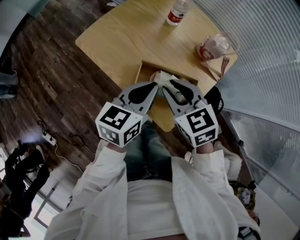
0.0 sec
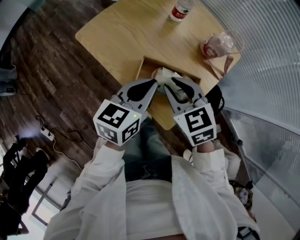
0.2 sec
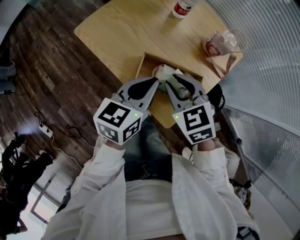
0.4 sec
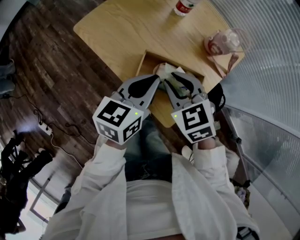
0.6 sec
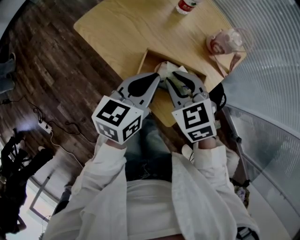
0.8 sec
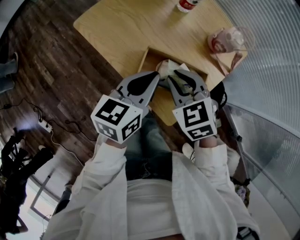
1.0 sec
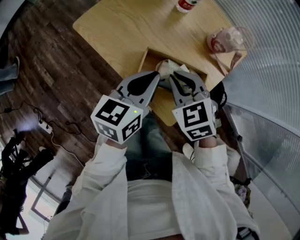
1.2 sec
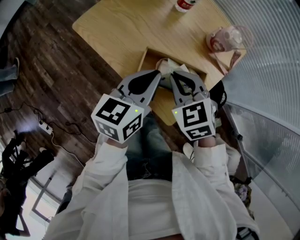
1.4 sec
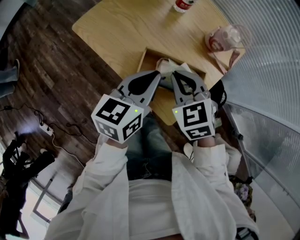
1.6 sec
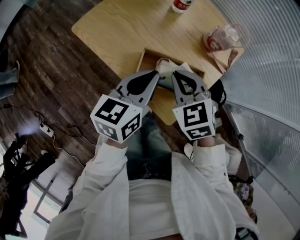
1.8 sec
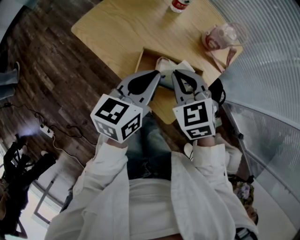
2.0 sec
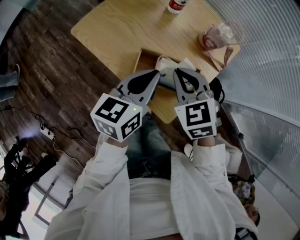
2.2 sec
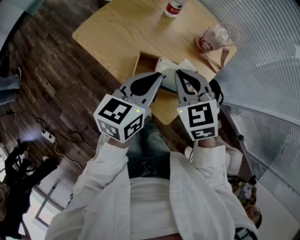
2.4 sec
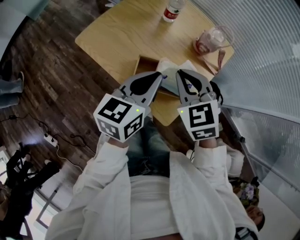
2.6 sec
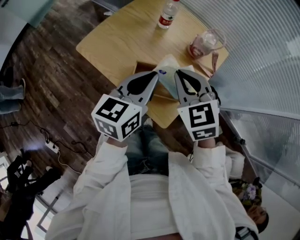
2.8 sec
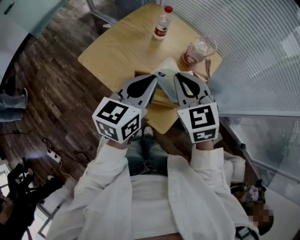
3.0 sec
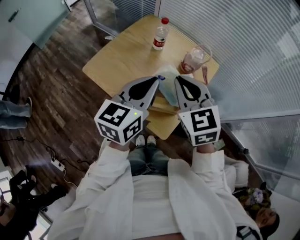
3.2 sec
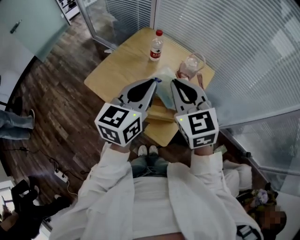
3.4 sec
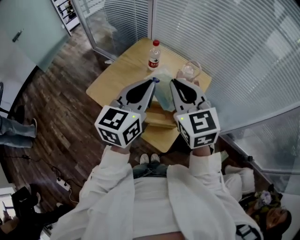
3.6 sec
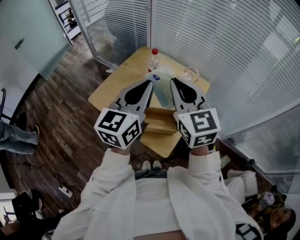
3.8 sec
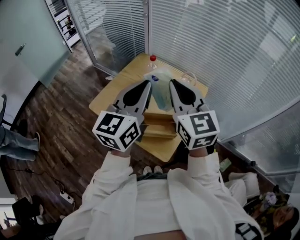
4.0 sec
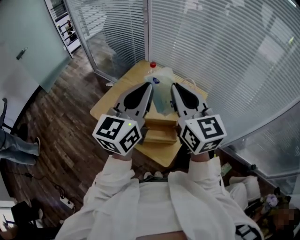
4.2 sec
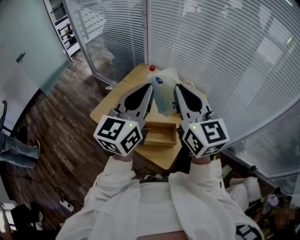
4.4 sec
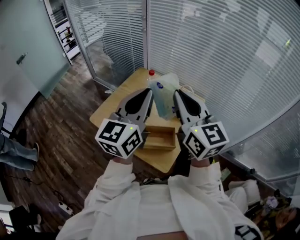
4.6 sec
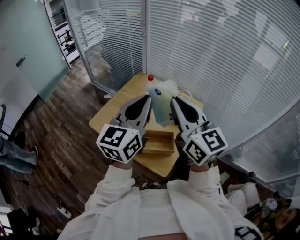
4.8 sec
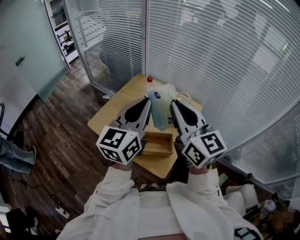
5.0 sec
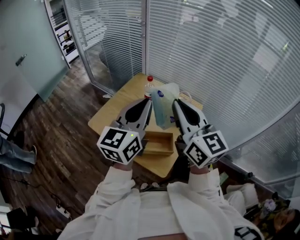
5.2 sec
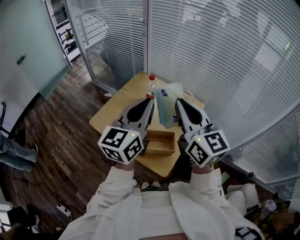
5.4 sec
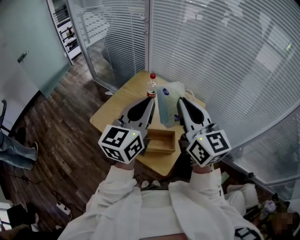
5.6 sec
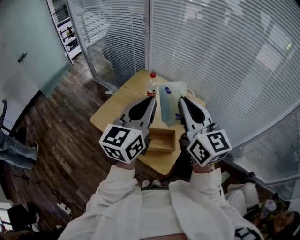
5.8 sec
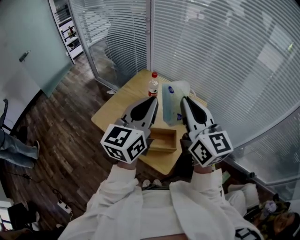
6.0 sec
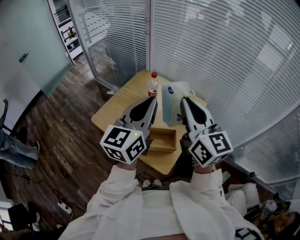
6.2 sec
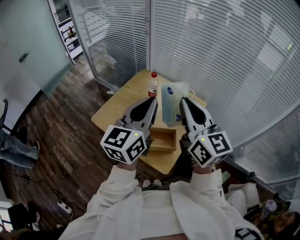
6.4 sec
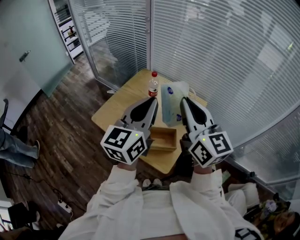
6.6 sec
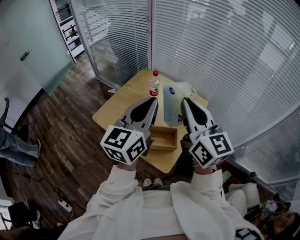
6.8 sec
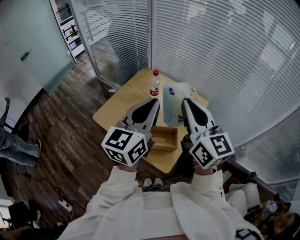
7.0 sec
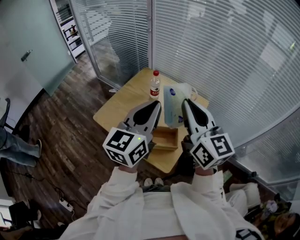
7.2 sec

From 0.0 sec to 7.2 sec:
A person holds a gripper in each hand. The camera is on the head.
From 0.0 sec to 1.4 sec: The grippers stay close to where they were, moving slightly.
From 1.4 sec to 2.8 sec: The two grippers go some 10 cm upward.
From 2.8 sec to 4.4 sec: The two grippers go approximately 20 cm upward. The left gripper swivels about 30 degrees, while the right gripper angles its fingers upward, by some 40 degrees.
From 4.4 sec to 7.2 sec: The grippers stay close to where they were, moving slightly.

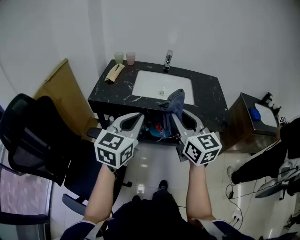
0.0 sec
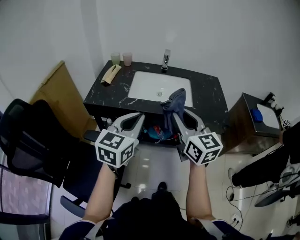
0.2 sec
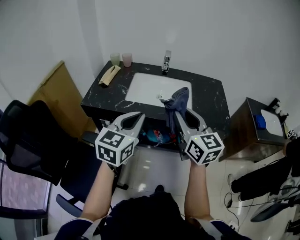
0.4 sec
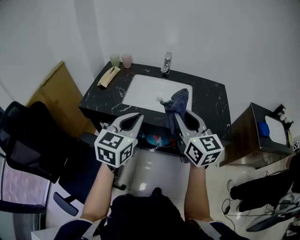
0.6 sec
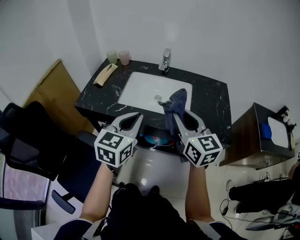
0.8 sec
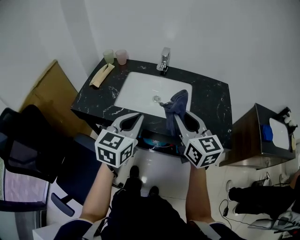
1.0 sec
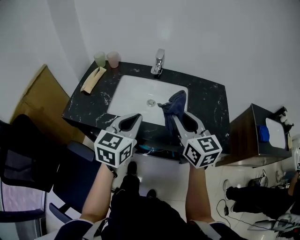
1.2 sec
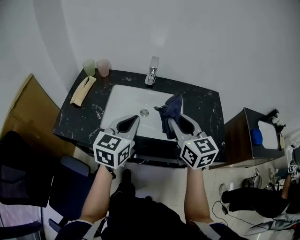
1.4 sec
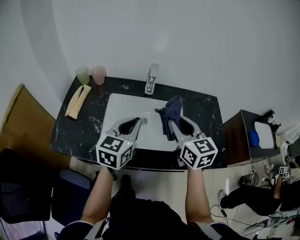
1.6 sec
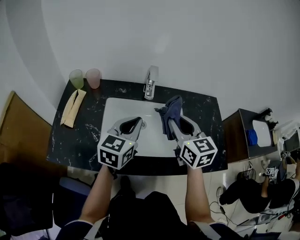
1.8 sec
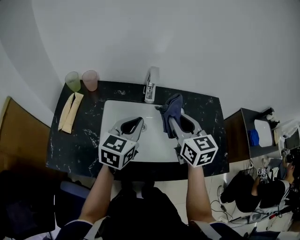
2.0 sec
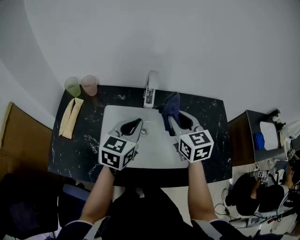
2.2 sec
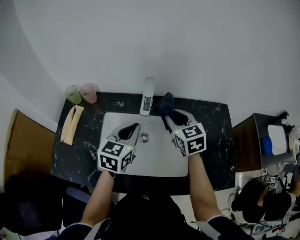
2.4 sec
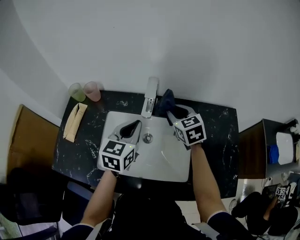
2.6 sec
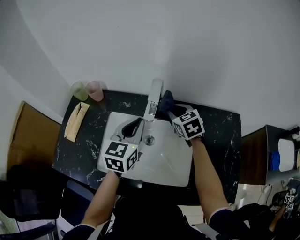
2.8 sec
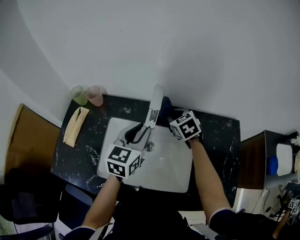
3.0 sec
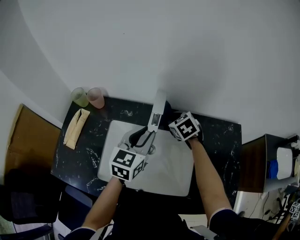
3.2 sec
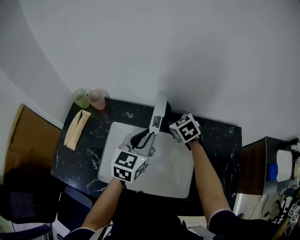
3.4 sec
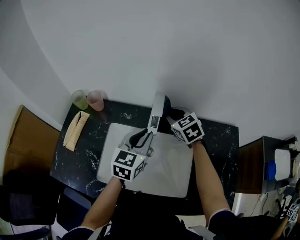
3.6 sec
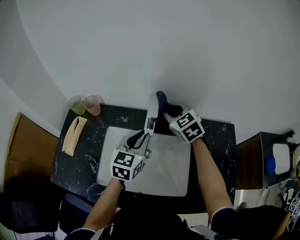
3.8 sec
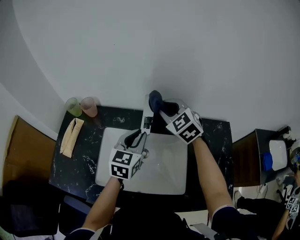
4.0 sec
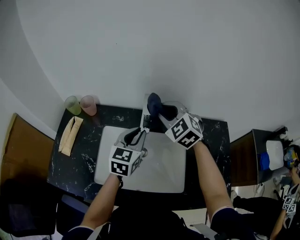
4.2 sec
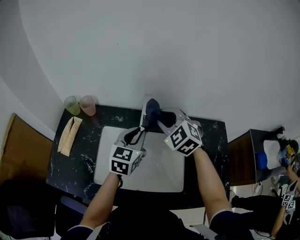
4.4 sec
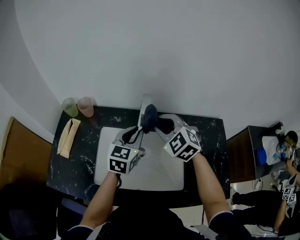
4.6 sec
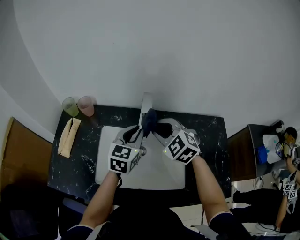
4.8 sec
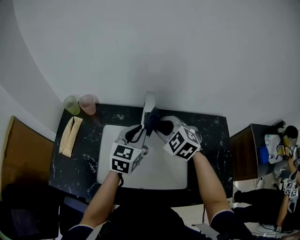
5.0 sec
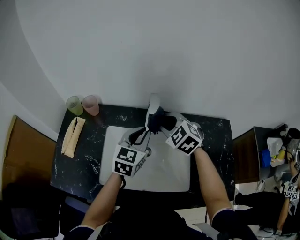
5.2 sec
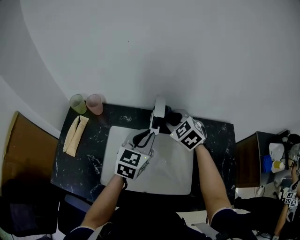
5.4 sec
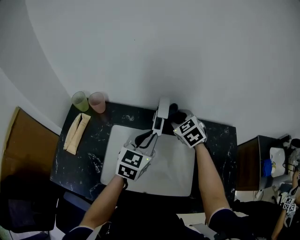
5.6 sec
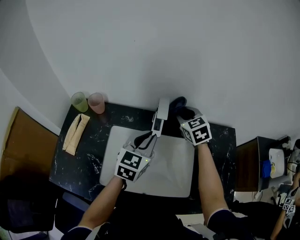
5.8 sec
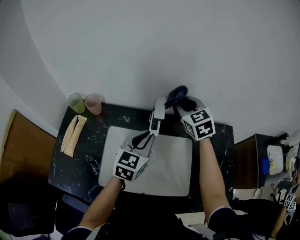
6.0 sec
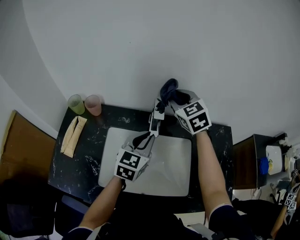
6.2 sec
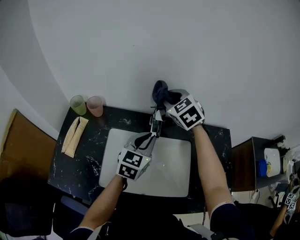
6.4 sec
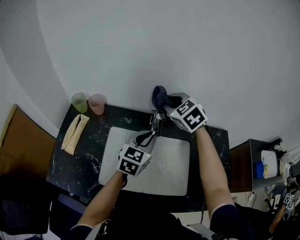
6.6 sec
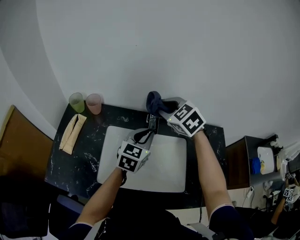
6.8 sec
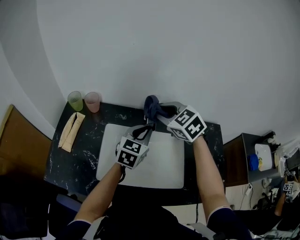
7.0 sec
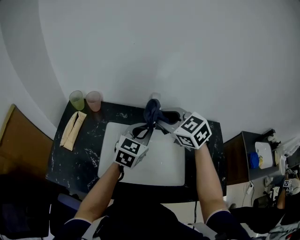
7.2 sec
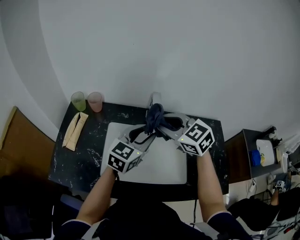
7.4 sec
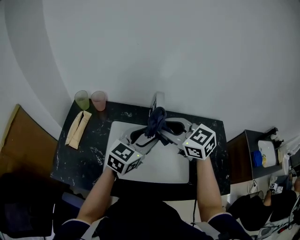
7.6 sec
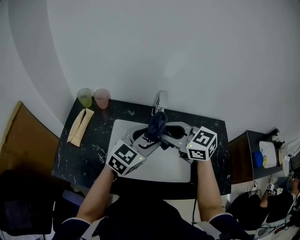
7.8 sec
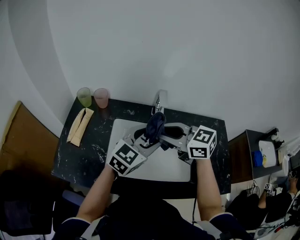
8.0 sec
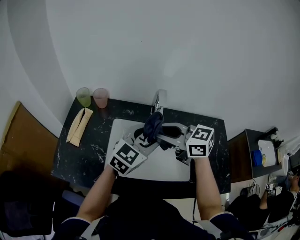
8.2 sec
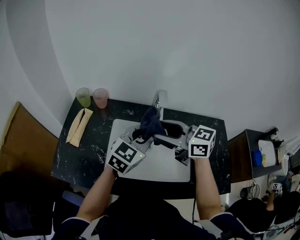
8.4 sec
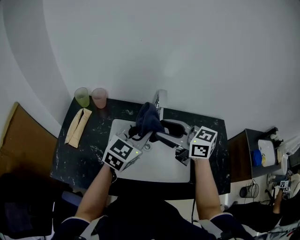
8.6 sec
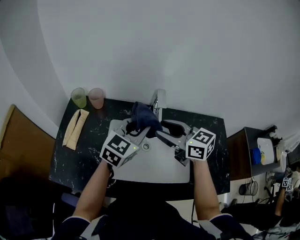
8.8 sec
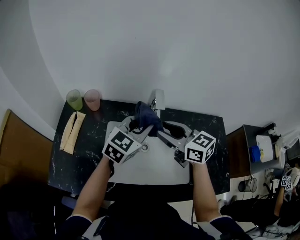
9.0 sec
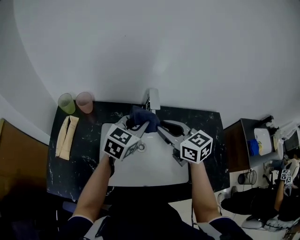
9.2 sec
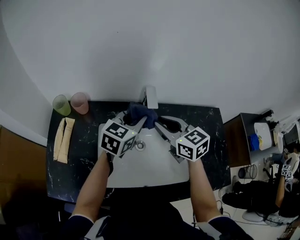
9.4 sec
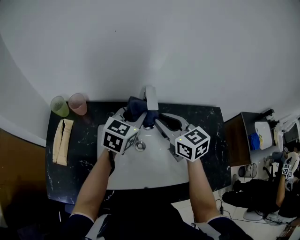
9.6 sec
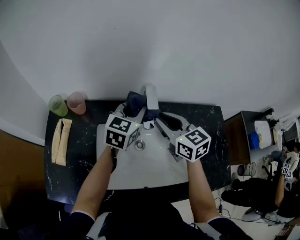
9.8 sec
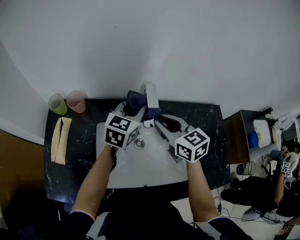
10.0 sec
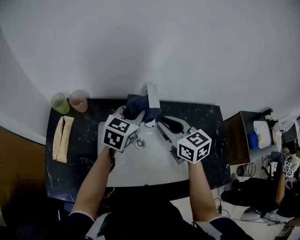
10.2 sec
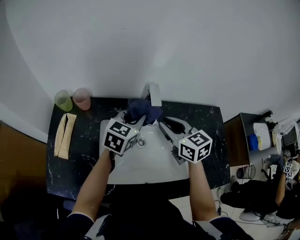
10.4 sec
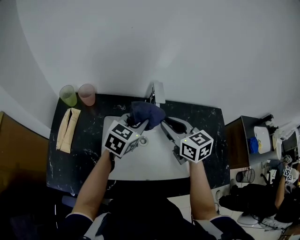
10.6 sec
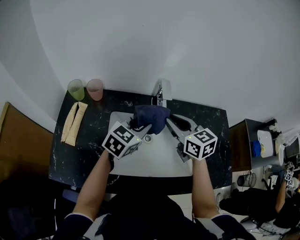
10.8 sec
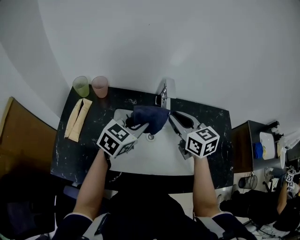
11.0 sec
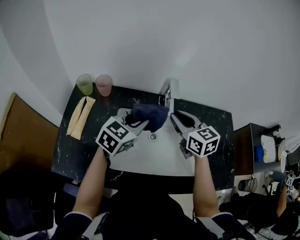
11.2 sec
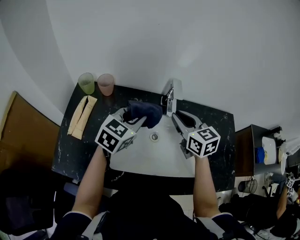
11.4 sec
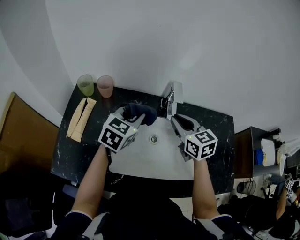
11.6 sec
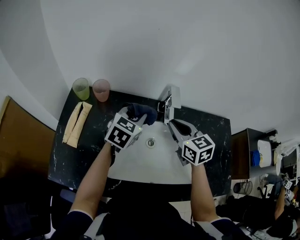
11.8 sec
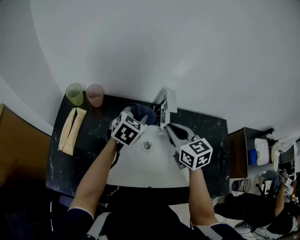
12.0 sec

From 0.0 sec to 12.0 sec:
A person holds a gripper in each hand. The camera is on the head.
From 0.0 sec to 1.6 sec: The two grippers go about 35 cm forward.
From 1.6 sec to 3.0 sec: The left gripper travels forward by about 15 cm, and opens. The right gripper travels forward and downward by roughly 30 cm, and angles its fingers downward, by about 30 degrees.
From 3.0 sec to 4.4 sec: The right gripper moves upward, about 10 cm, and changes its angle by some 30 degrees.
From 4.4 sec to 6.0 sec: The right gripper is displaced forward by roughly 10 cm, and rotates roughly 30 degrees.
From 6.0 sec to 7.6 sec: The left gripper travels backward and upward by about 10 cm, and opens. The right gripper is displaced backward and to the left by about 20 cm, and rotates about 30 degrees.
From 7.6 sec to 9.0 sec: The left gripper is displaced forward by about 5 cm, and closes up.
From 9.0 sec to 10.4 sec: The right gripper moves approximately 5 cm. Meanwhile the left gripper shifts approximately 5 cm downward.
From 10.4 sec to 12.0 sec: The left gripper travels backward and back again, roughly 10 cm each way.

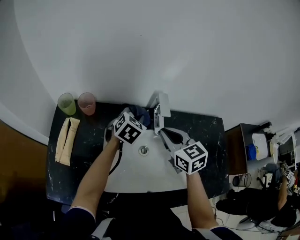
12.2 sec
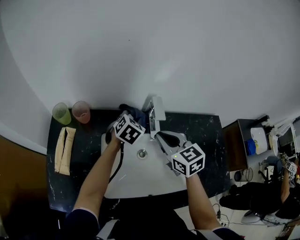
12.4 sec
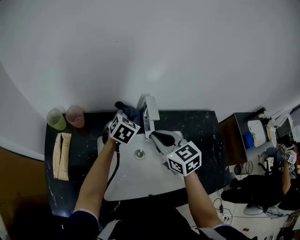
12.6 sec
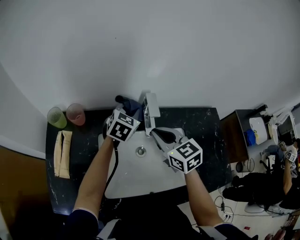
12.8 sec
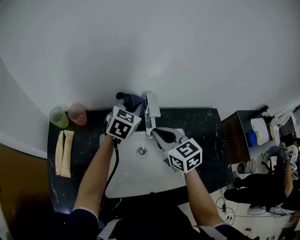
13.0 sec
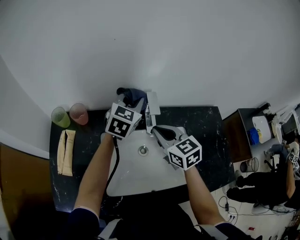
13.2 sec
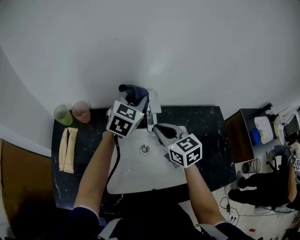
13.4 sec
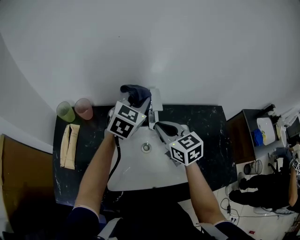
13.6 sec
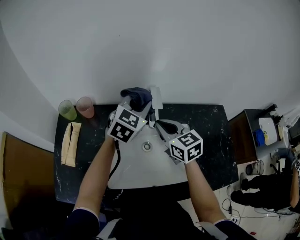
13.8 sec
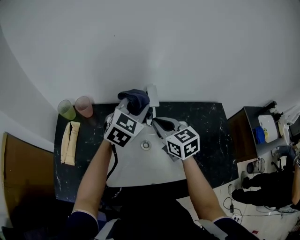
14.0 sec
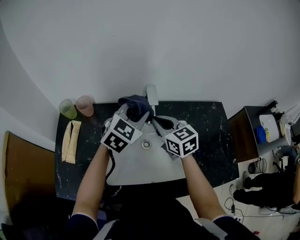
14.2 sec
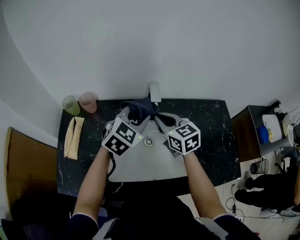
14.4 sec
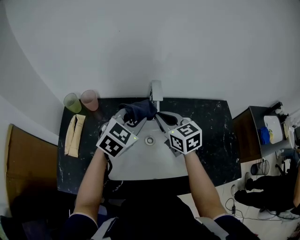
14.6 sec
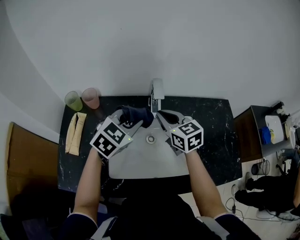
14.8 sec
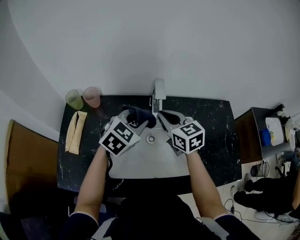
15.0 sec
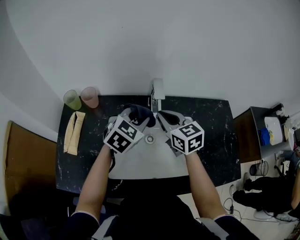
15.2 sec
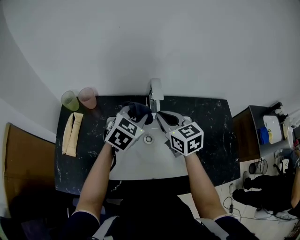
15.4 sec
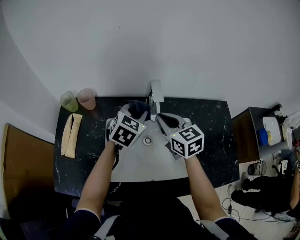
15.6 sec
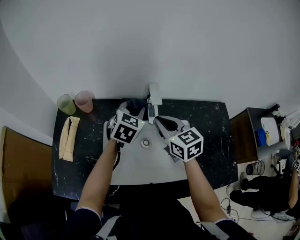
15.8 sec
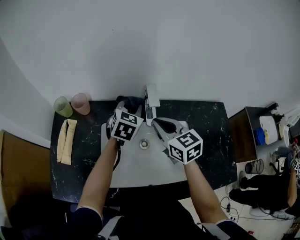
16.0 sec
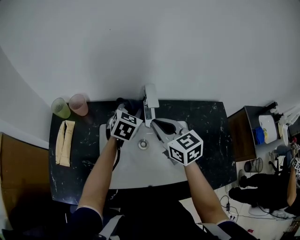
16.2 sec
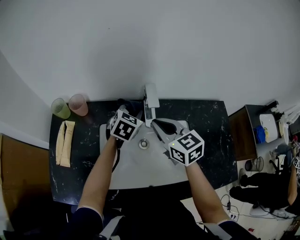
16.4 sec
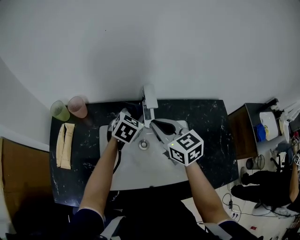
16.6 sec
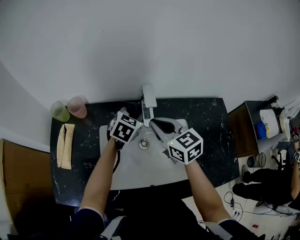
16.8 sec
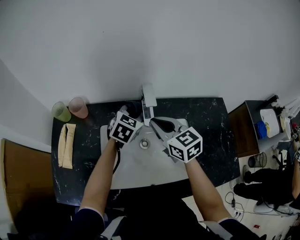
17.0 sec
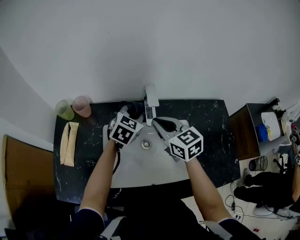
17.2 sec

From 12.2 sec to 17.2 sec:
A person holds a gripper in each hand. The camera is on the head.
From 12.2 sec to 13.8 sec: The left gripper goes roughly 10 cm upward.
From 13.8 sec to 15.6 sec: The left gripper is displaced downward by some 5 cm.
